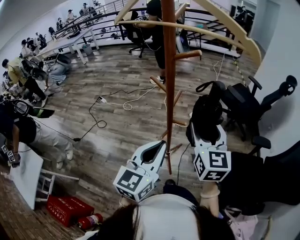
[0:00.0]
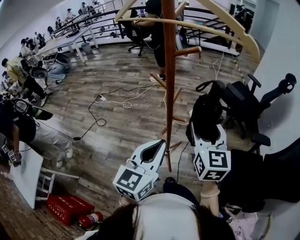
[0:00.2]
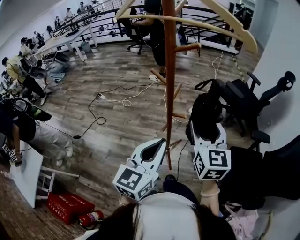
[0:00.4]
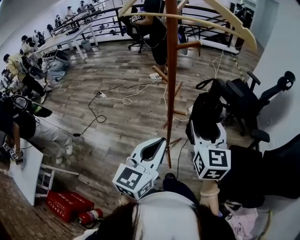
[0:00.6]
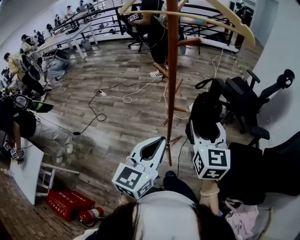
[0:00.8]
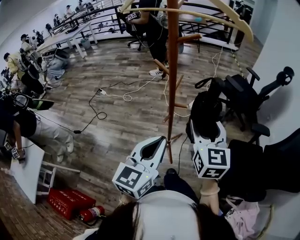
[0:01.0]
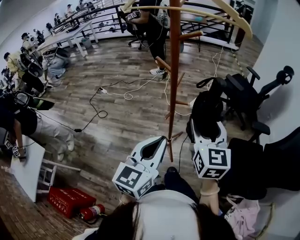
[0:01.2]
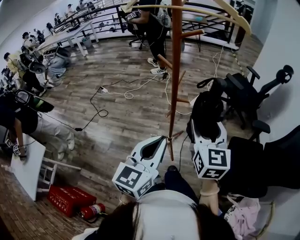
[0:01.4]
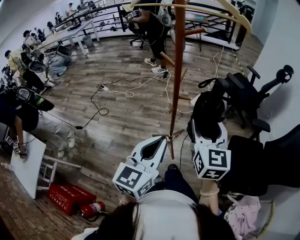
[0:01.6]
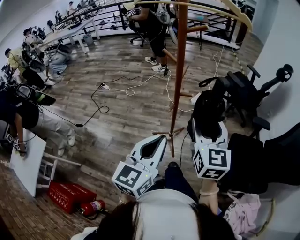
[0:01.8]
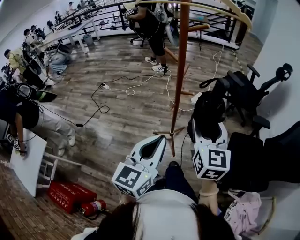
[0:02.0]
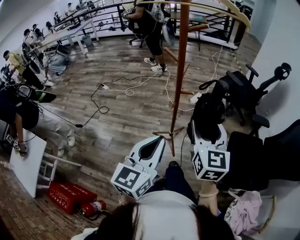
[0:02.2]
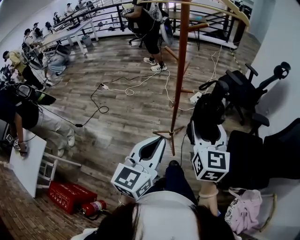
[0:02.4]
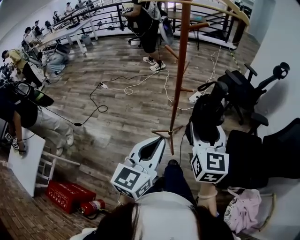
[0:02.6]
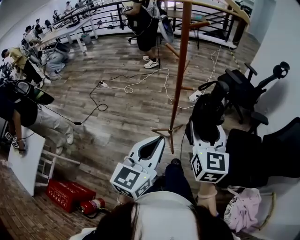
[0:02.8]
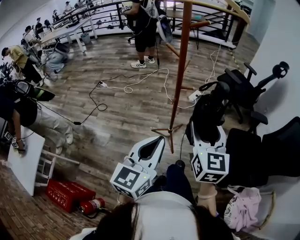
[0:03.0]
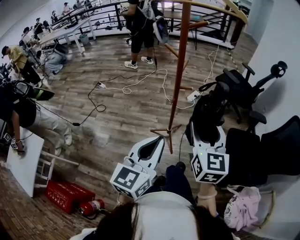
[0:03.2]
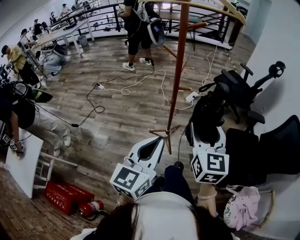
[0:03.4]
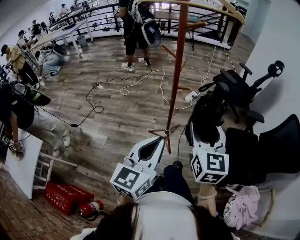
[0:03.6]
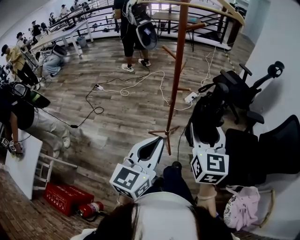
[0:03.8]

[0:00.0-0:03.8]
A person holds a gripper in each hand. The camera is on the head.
0:00.0 to 0:01.2: The grippers both shift backward by about 10 cm.
0:01.2 to 0:02.6: The grippers both shift backward by roughly 10 cm.
0:02.6 to 0:03.8: The grippers make only small movements.

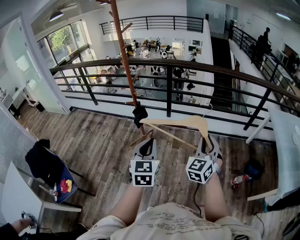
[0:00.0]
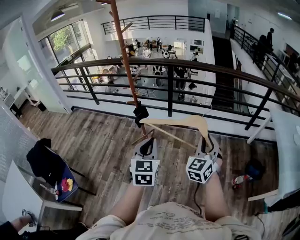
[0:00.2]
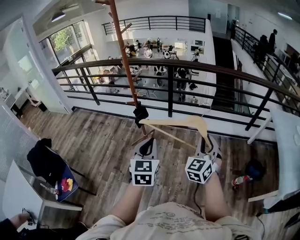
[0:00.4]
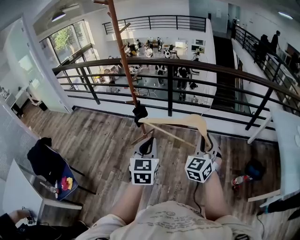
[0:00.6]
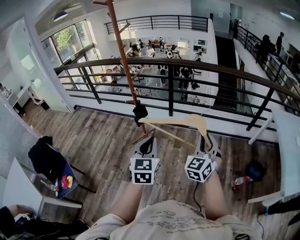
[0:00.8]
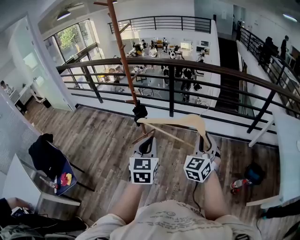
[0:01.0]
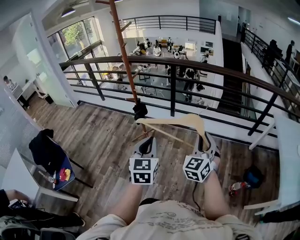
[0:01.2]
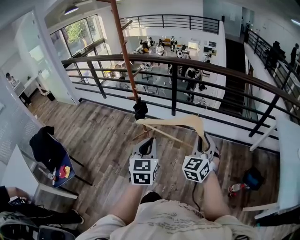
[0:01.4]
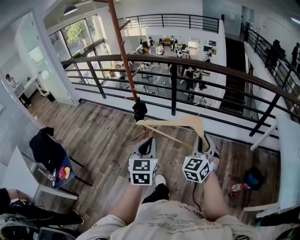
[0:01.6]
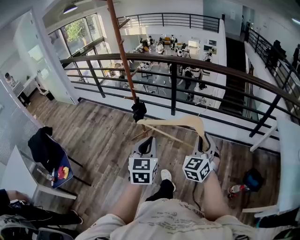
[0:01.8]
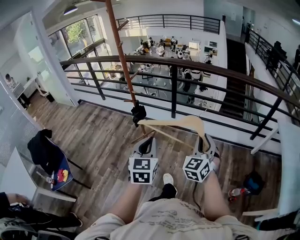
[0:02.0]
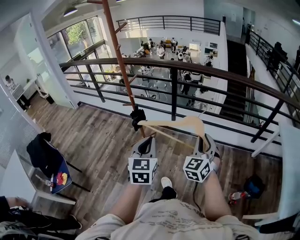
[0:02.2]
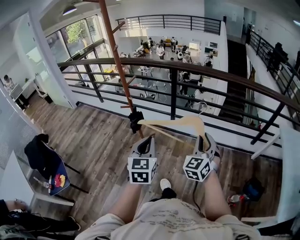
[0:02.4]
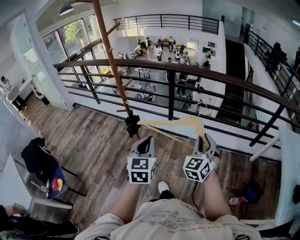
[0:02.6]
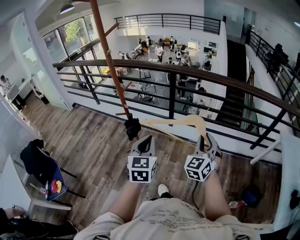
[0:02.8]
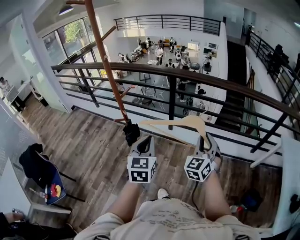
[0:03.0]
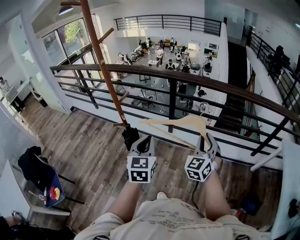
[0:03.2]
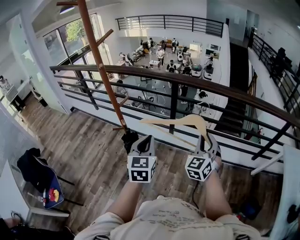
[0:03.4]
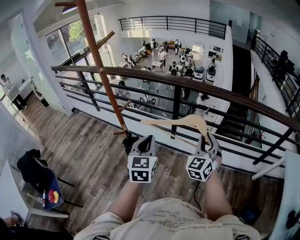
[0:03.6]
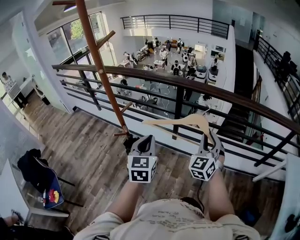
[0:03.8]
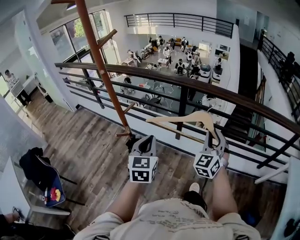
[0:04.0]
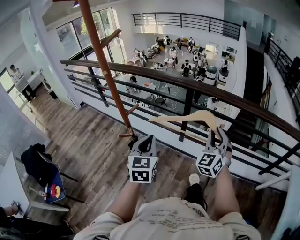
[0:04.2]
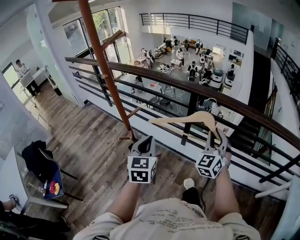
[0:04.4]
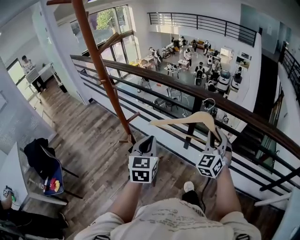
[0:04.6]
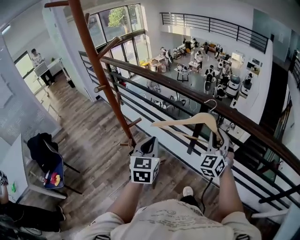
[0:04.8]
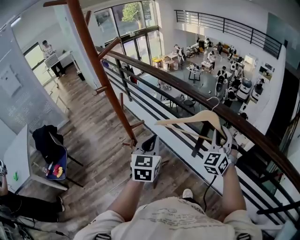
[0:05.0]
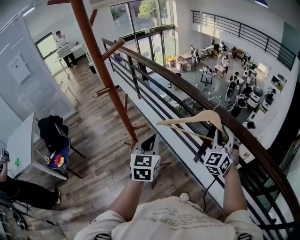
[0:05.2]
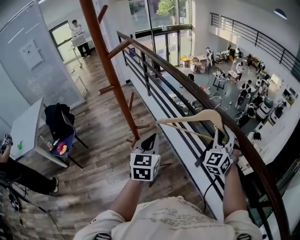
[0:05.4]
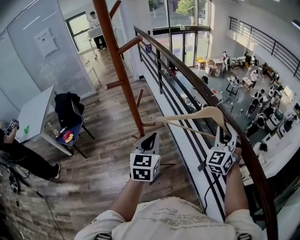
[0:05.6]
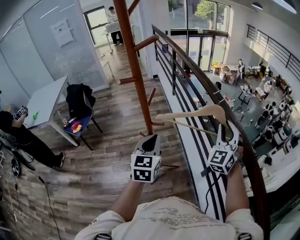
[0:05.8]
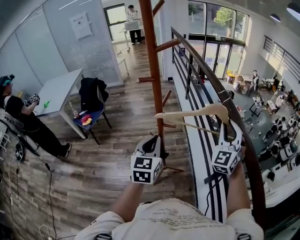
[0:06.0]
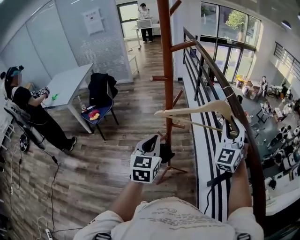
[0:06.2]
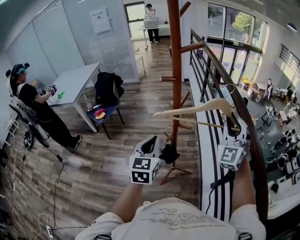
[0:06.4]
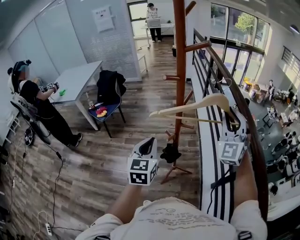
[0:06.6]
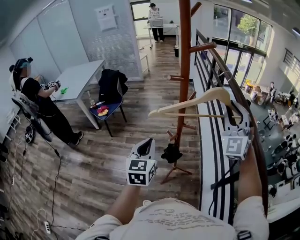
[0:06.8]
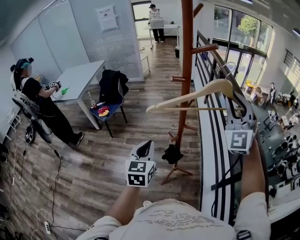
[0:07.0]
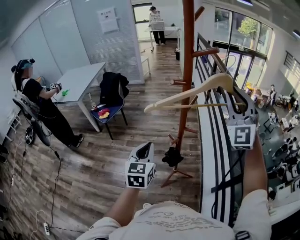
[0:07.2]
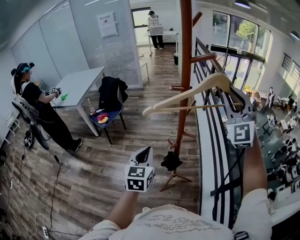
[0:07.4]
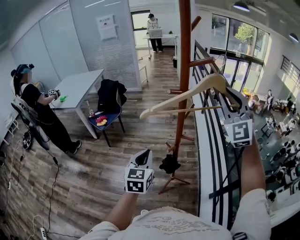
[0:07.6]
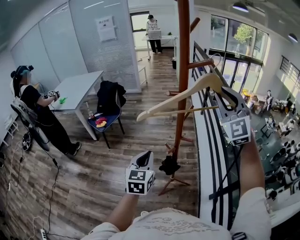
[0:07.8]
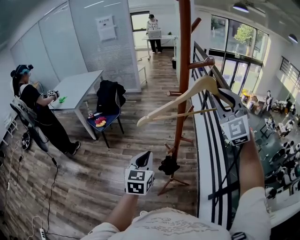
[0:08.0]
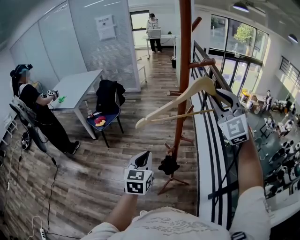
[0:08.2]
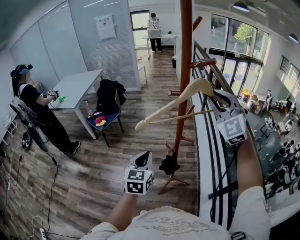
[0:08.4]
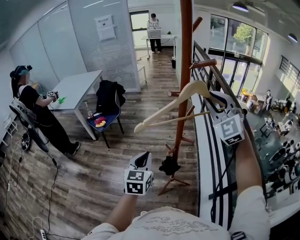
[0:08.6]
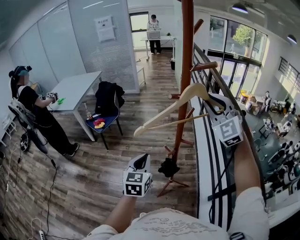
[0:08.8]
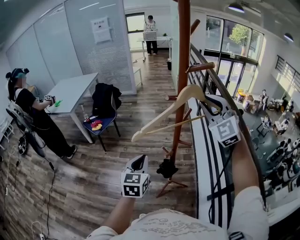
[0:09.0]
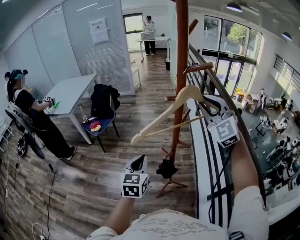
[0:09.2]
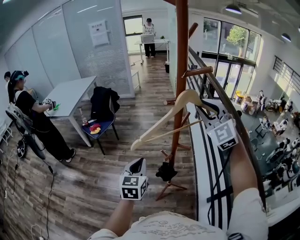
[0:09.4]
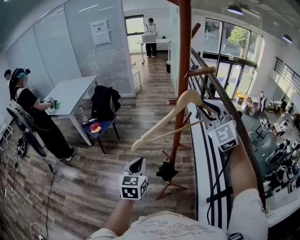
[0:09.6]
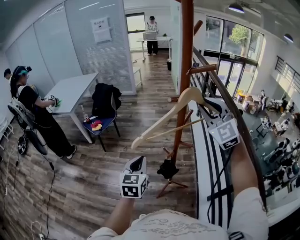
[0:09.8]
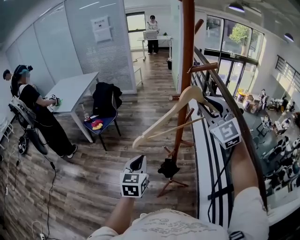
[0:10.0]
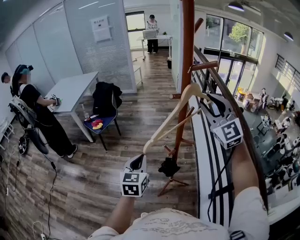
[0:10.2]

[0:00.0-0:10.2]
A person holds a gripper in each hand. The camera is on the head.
0:00.0 to 0:01.4: The two grippers go some 5 cm to the right.
0:01.4 to 0:03.0: Both grippers travel together forward, approximately 30 cm.
0:03.0 to 0:04.4: Both grippers travel together forward, roughly 25 cm.
0:04.4 to 0:05.8: The left gripper moves about 10 cm, and rotates approximately 40 degrees, while the right gripper moves about 35 cm, and rotates approximately 50 degrees.
0:05.8 to 0:07.2: The right gripper changes place by roughly 25 cm, and swivels about 40 degrees. Meanwhile the left gripper shifts by roughly 15 cm.
0:07.2 to 0:08.8: The right gripper is displaced forward and to the left by about 10 cm.
0:08.8 to 0:10.2: There are only small adjustments of the grippers.

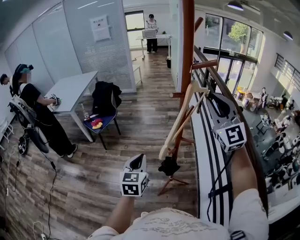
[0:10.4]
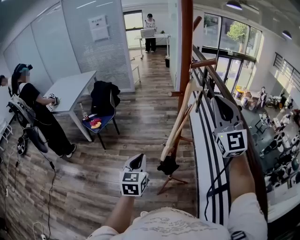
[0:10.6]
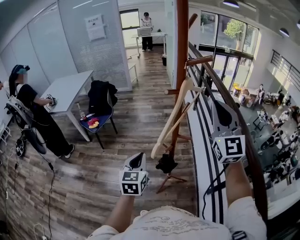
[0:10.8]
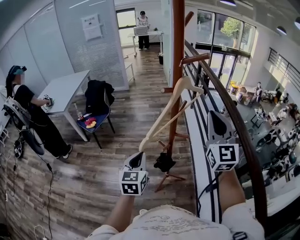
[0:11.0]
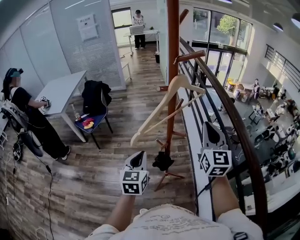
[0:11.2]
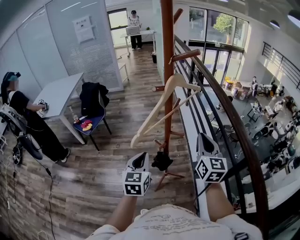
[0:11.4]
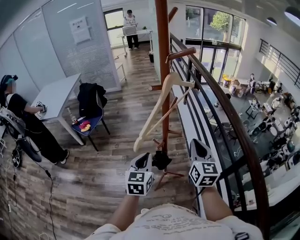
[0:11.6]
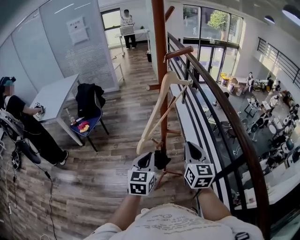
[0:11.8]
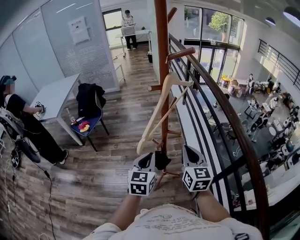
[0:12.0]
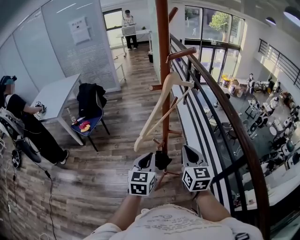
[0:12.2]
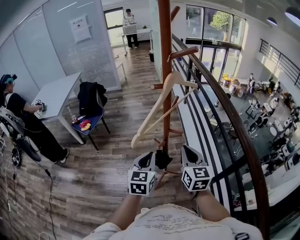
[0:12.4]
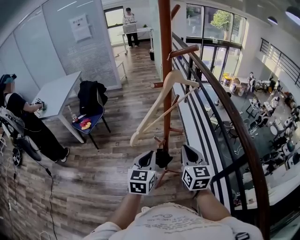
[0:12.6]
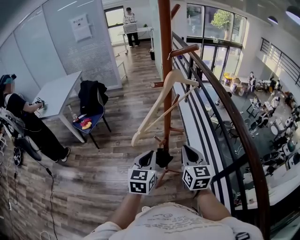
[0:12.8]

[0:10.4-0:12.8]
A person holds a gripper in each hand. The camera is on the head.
0:10.4 to 0:11.6: The left gripper shifts about 10 cm to the right; the right gripper travels downward and backward by roughly 20 cm, and swivels approximately 50 degrees.
0:11.6 to 0:12.8: The right gripper shifts by about 5 cm.

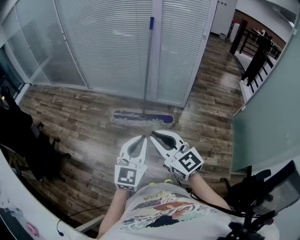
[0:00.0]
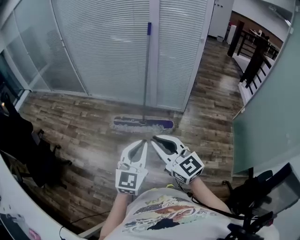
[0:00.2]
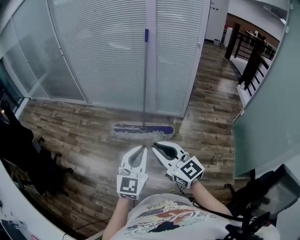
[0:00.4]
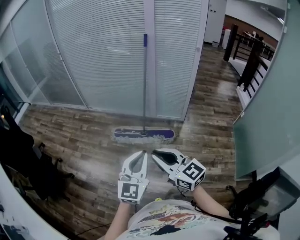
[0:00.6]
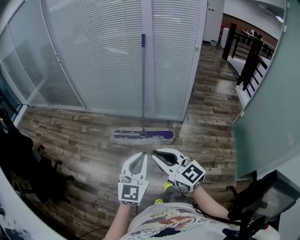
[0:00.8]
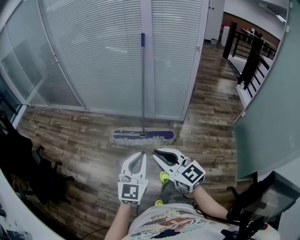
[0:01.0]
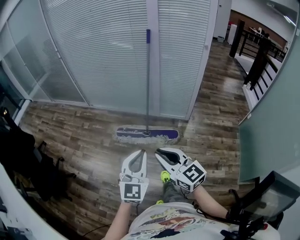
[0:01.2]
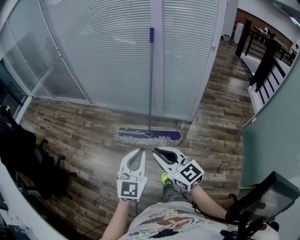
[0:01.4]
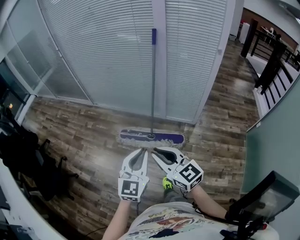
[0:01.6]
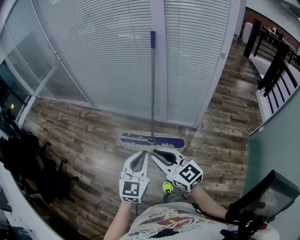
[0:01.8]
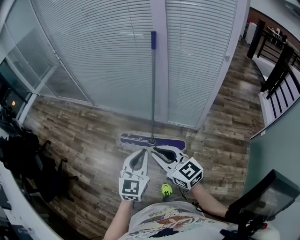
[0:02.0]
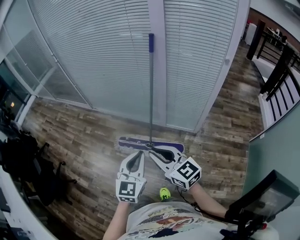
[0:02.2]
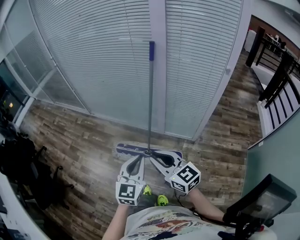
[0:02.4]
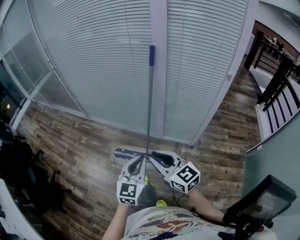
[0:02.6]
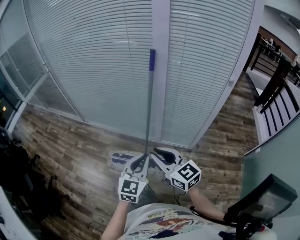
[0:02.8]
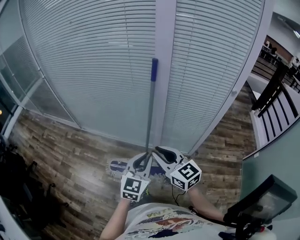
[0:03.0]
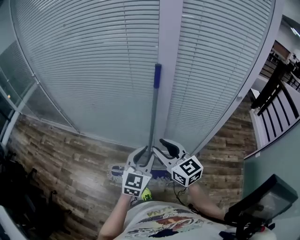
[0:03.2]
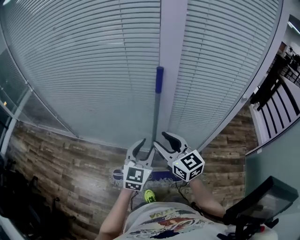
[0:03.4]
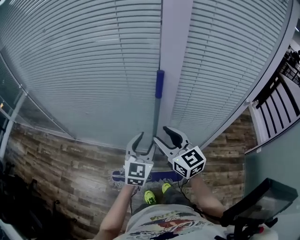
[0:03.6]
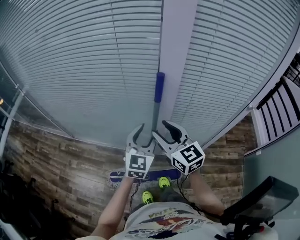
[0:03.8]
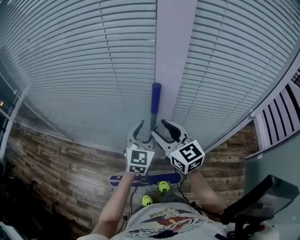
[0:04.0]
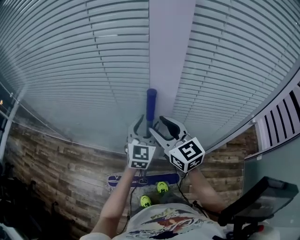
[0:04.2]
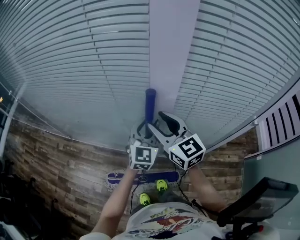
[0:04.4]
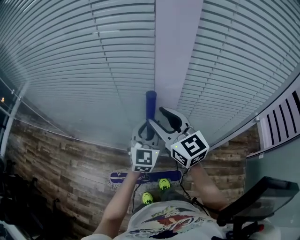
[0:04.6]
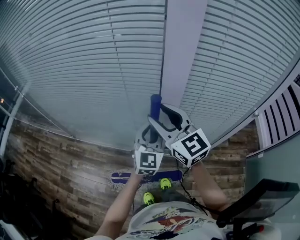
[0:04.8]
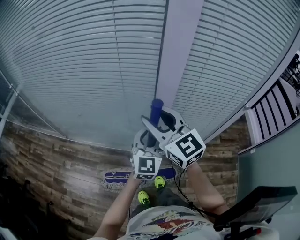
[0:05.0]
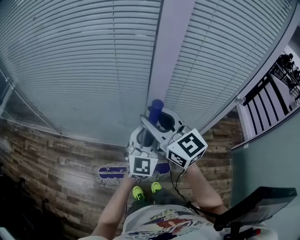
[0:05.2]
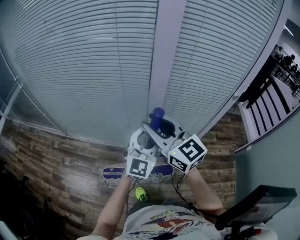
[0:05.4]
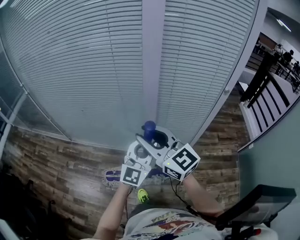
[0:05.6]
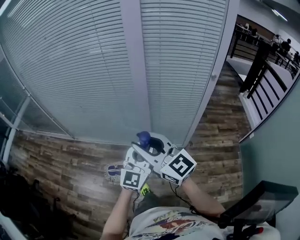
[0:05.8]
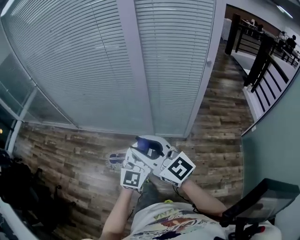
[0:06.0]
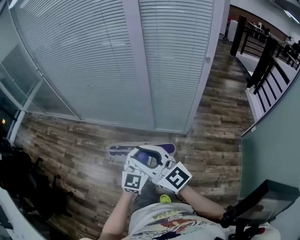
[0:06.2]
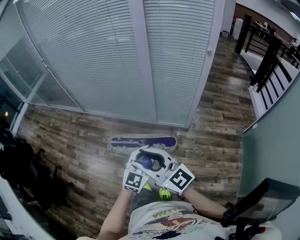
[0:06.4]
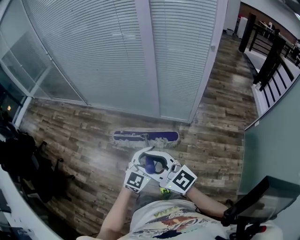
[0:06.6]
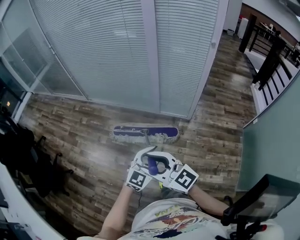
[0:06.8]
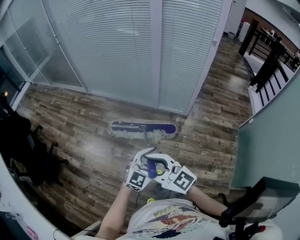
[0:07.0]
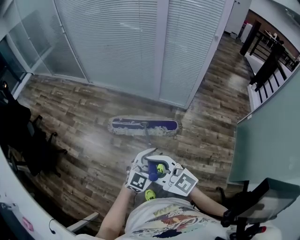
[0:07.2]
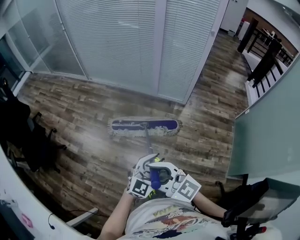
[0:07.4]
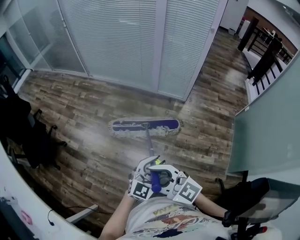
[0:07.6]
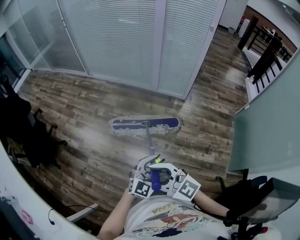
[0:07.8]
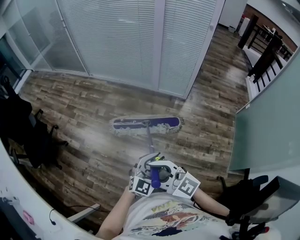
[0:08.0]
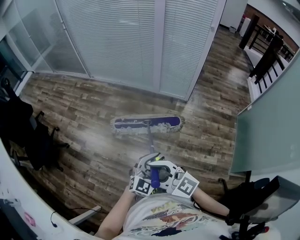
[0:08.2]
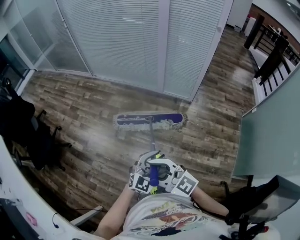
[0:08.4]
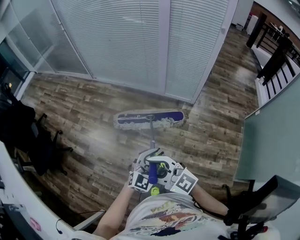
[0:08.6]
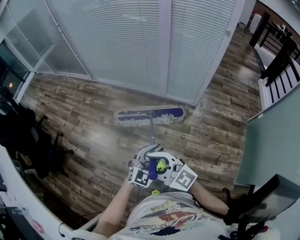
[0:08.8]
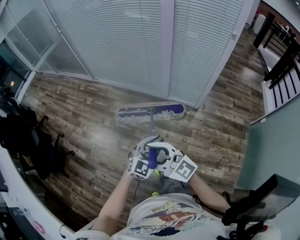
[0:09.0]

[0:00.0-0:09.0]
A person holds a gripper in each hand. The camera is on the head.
0:00.0 to 0:01.6: Both grippers travel together forward, approximately 25 cm.
0:01.6 to 0:03.0: Both grippers travel together forward, some 40 cm.
0:03.0 to 0:04.4: The two grippers go roughly 40 cm forward. The left gripper opens its fingers. Meanwhile the right gripper opens up.
0:04.4 to 0:06.0: The pair of grippers is taken backward, about 50 cm. The right gripper swivels approximately 20 degrees.
0:06.0 to 0:07.6: The pair of grippers is taken backward, about 60 cm. The right gripper swivels about 30 degrees.
0:07.6 to 0:09.0: The two grippers go approximately 35 cm forward.
